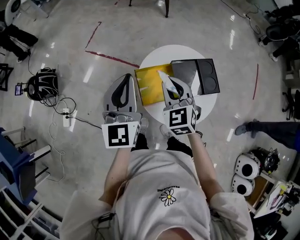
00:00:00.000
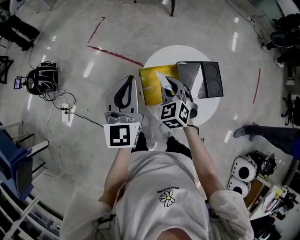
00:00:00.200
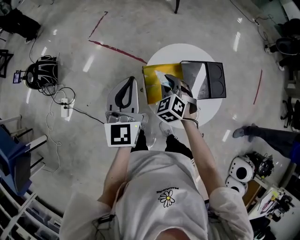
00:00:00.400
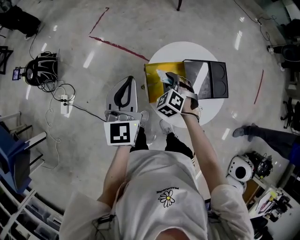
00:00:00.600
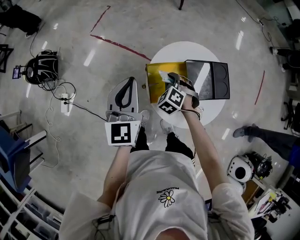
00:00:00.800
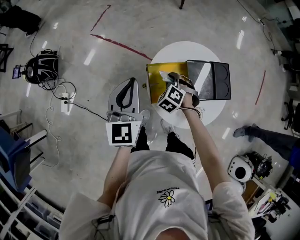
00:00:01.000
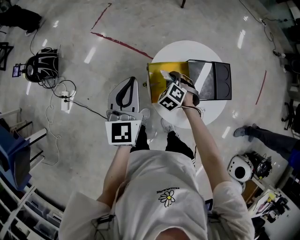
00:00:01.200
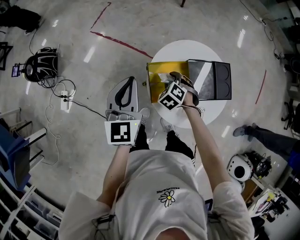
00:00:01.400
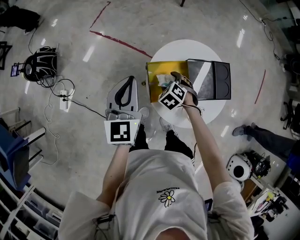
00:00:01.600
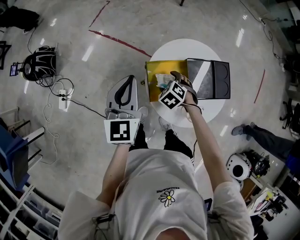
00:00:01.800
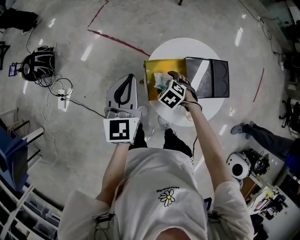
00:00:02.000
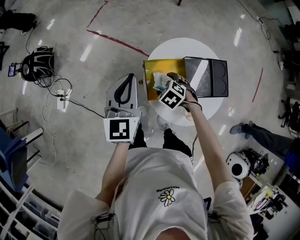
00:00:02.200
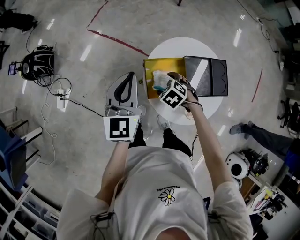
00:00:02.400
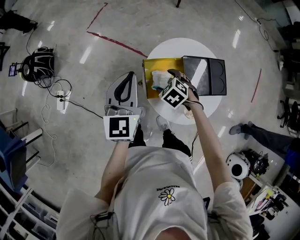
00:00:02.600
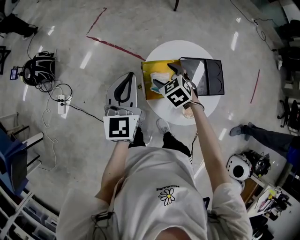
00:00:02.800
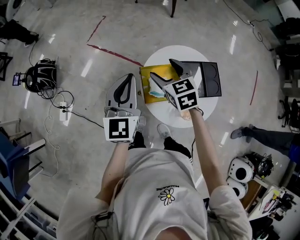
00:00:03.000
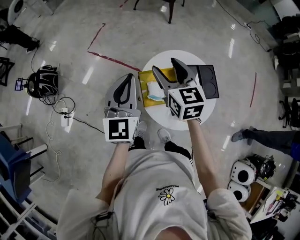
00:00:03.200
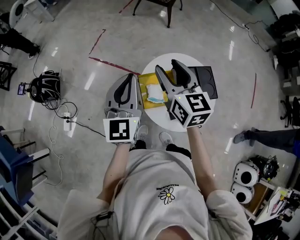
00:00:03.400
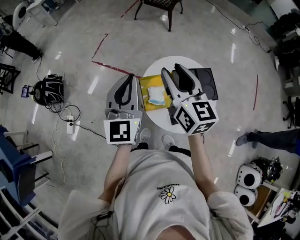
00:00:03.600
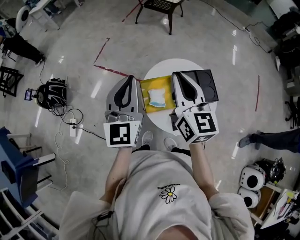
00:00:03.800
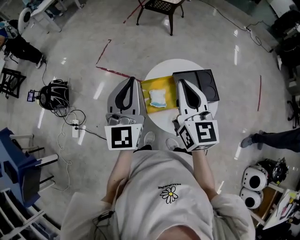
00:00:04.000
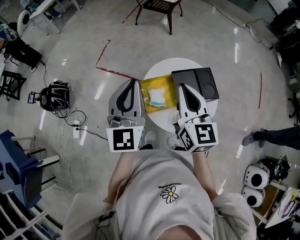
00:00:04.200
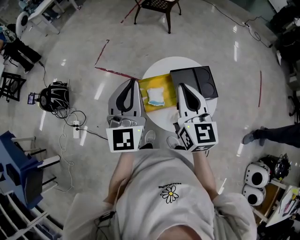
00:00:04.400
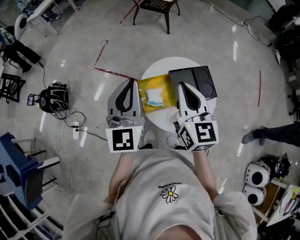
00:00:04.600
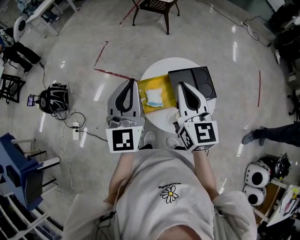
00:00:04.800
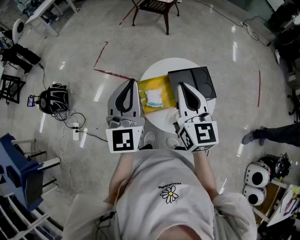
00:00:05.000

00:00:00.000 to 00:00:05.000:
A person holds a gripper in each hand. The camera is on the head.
00:00:00.000 to 00:00:01.600: The left gripper shifts roughly 10 cm downward and to the left; the right gripper moves downward, approximately 25 cm, angles its fingers downward, by roughly 40 degrees, and opens its fingers.
00:00:01.600 to 00:00:03.400: The right gripper goes some 35 cm upward, and points its fingers some 60 degrees further upward. The left gripper shifts approximately 10 cm upward.
00:00:03.400 to 00:00:05.000: The right gripper moves to the right and backward, approximately 10 cm, and closes up. The left gripper moves upward and to the right, about 5 cm.

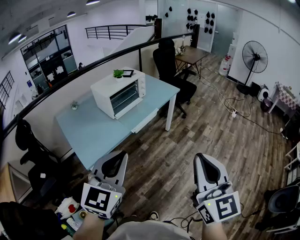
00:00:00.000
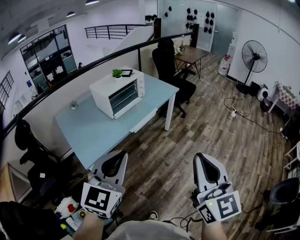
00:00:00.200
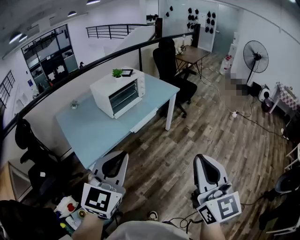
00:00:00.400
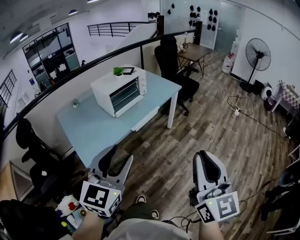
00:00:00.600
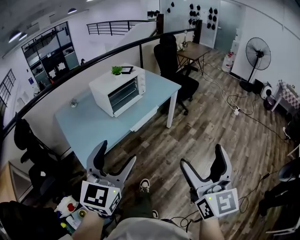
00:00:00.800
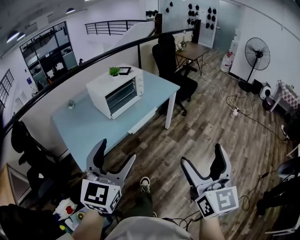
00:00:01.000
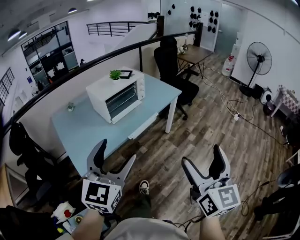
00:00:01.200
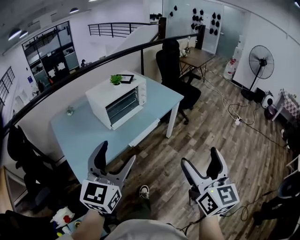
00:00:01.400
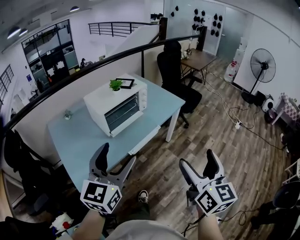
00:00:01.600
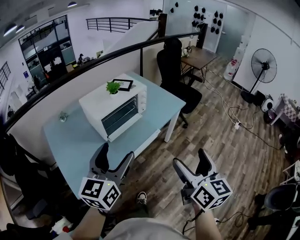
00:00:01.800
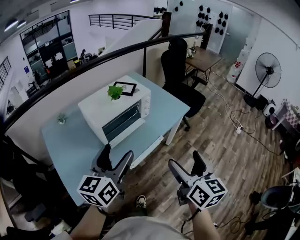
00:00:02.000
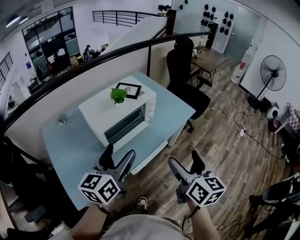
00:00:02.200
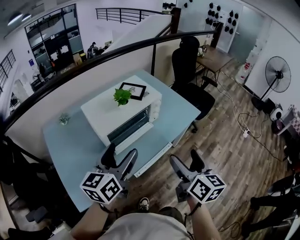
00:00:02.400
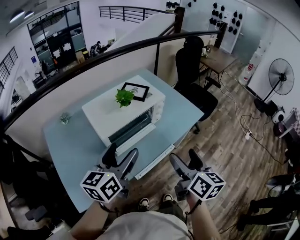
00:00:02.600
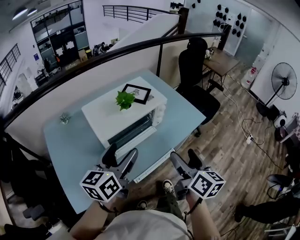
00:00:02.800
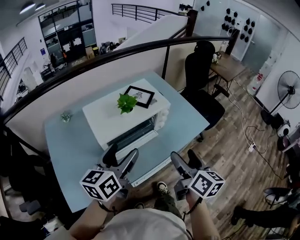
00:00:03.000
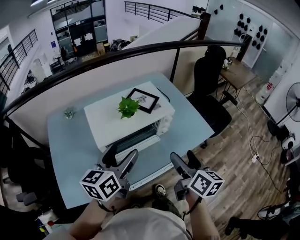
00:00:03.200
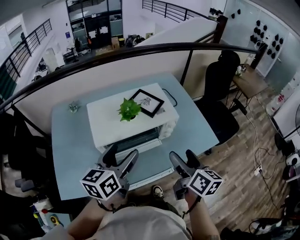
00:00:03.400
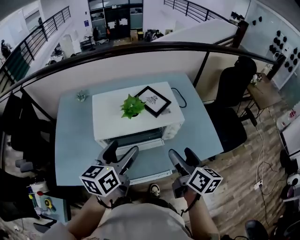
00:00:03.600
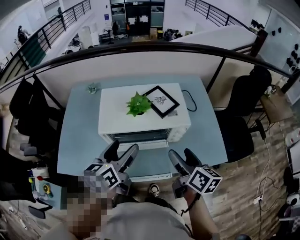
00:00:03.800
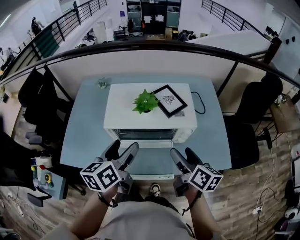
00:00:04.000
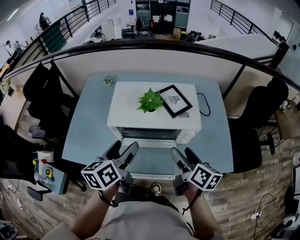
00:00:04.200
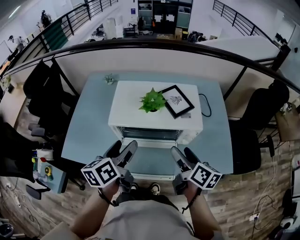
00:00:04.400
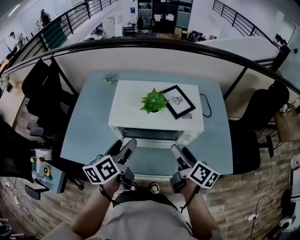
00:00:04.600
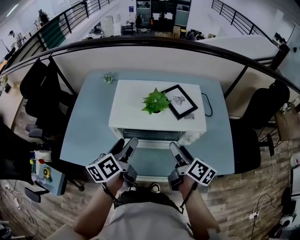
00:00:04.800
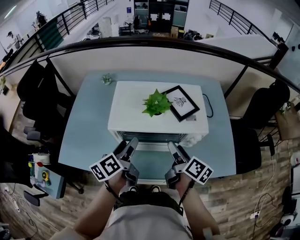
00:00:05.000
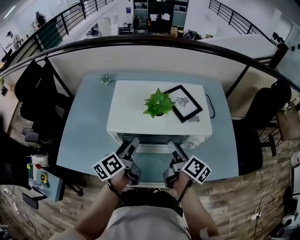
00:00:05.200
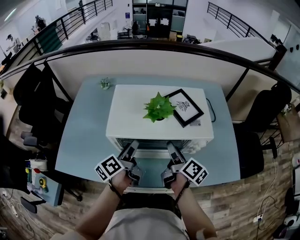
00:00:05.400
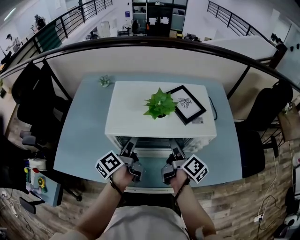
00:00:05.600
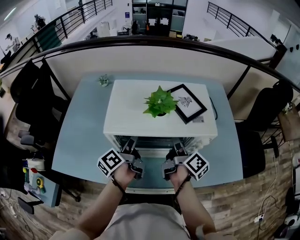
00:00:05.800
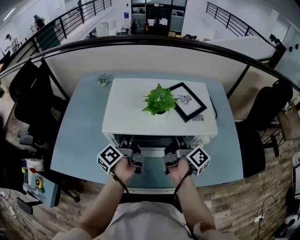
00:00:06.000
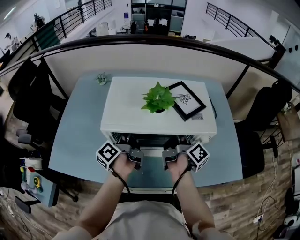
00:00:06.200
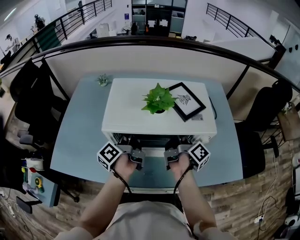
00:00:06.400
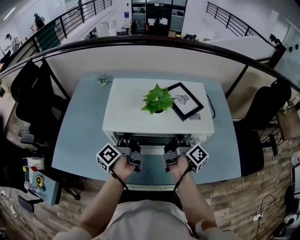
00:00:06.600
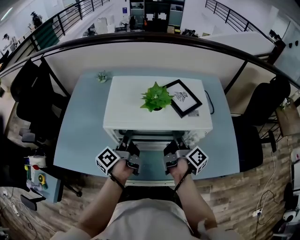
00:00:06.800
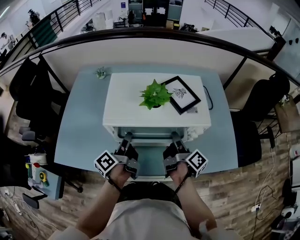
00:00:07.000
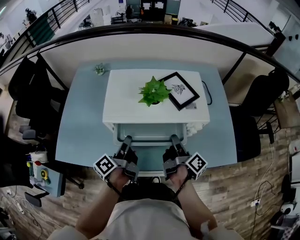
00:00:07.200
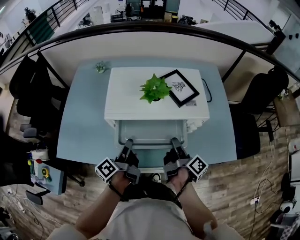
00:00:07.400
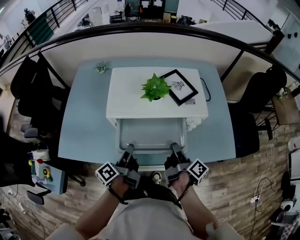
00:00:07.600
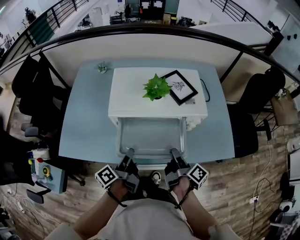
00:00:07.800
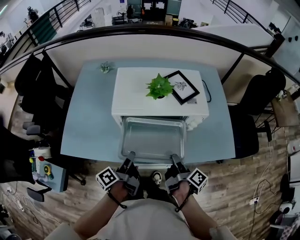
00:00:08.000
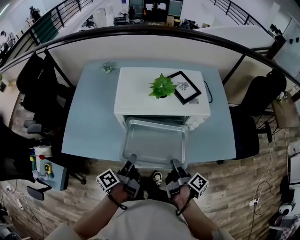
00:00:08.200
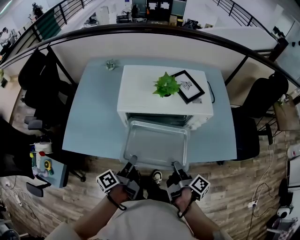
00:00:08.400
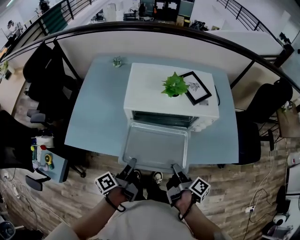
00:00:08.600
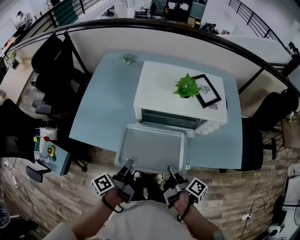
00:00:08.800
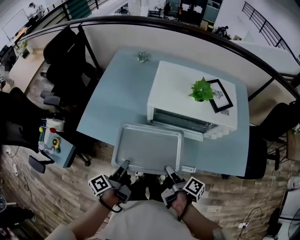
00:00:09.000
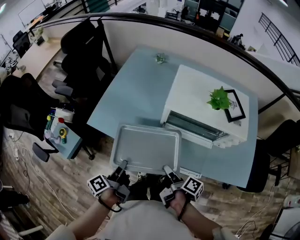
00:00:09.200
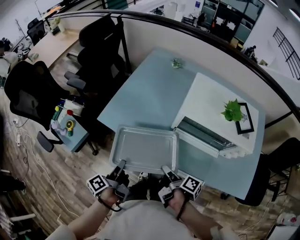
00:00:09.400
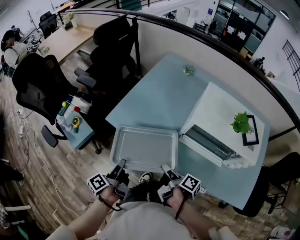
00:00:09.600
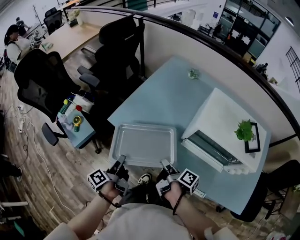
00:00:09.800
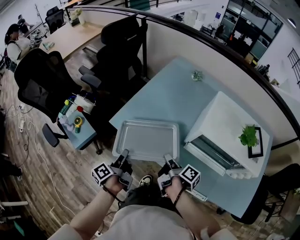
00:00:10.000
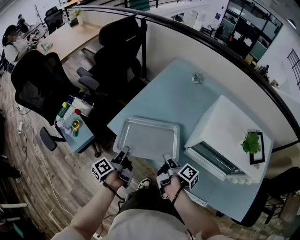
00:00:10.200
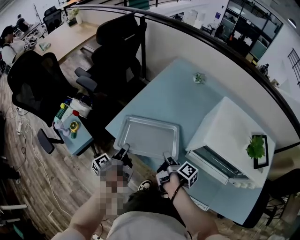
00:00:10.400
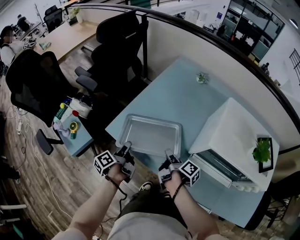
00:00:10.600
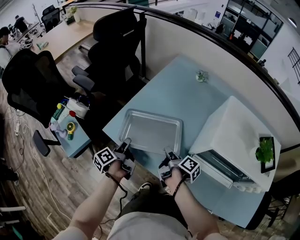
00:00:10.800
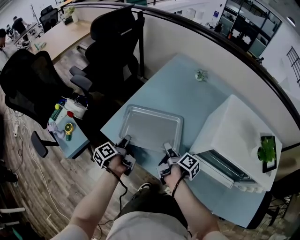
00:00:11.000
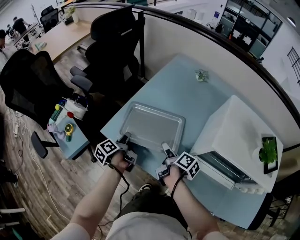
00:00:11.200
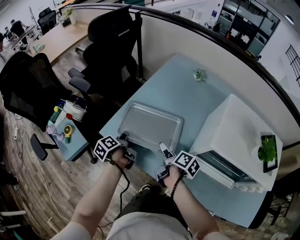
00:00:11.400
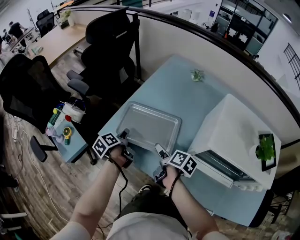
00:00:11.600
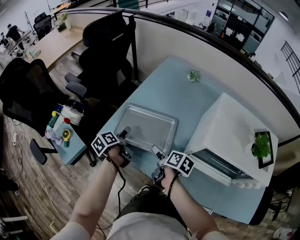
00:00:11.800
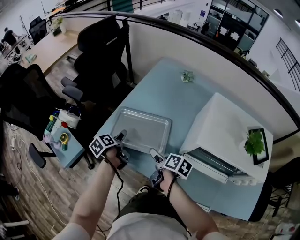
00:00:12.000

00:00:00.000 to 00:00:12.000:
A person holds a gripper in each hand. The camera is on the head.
00:00:00.000 to 00:00:01.600: The grippers both shift forward by about 25 cm. The right gripper opens up. The left gripper opens its fingers.
00:00:01.600 to 00:00:03.000: Both grippers move forward, about 35 cm. The right gripper rotates roughly 30 degrees; the left gripper swivels roughly 30 degrees.
00:00:03.000 to 00:00:04.400: The left gripper is displaced downward by approximately 5 cm, and rotates about 50 degrees; the right gripper shifts by about 20 cm, and turns by about 40 degrees.
00:00:04.400 to 00:00:06.000: The left gripper shifts about 20 cm downward and forward, and swivels roughly 40 degrees. Meanwhile the right gripper heads forward and downward, covering roughly 15 cm, and changes its angle by roughly 40 degrees.
00:00:06.000 to 00:00:07.600: The grippers both shift backward by approximately 15 cm. The left gripper closes its fingers.
00:00:07.600 to 00:00:09.000: The left gripper heads backward and to the left, covering some 20 cm. The right gripper is displaced to the left and backward by roughly 20 cm, and changes its angle by about 30 degrees.
00:00:09.000 to 00:00:10.400: The left gripper is displaced to the left, forward and downward by about 25 cm, and swivels roughly 30 degrees, while the right gripper goes about 25 cm forward and to the left.
00:00:10.400 to 00:00:12.000: The right gripper turns by roughly 30 degrees, and opens its fingers, while the left gripper moves forward and downward, roughly 10 cm, rotates roughly 30 degrees, and opens.

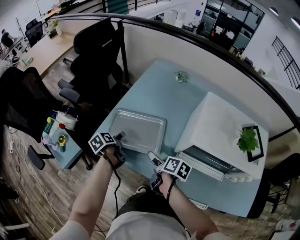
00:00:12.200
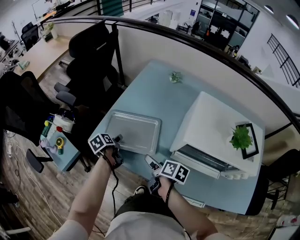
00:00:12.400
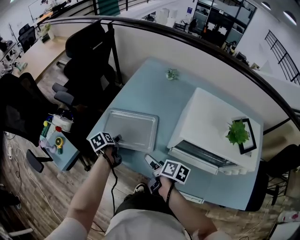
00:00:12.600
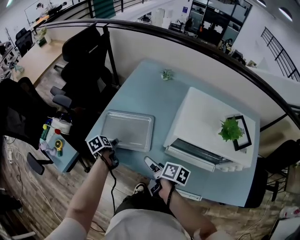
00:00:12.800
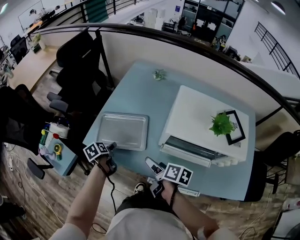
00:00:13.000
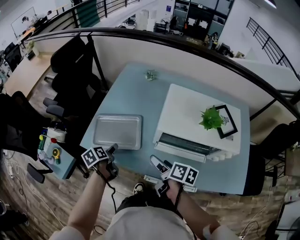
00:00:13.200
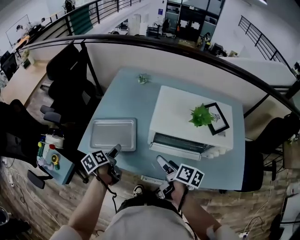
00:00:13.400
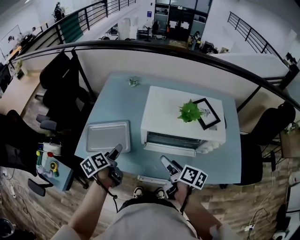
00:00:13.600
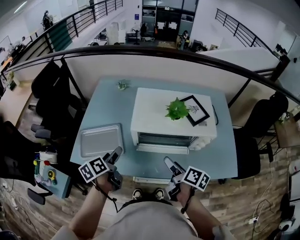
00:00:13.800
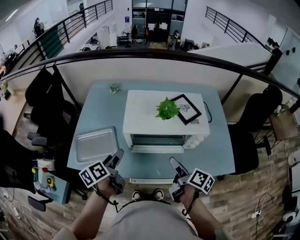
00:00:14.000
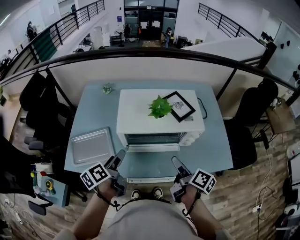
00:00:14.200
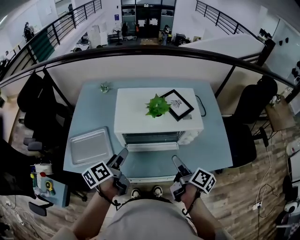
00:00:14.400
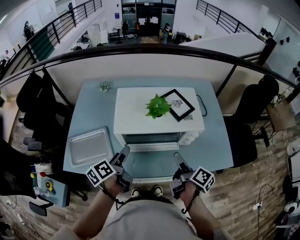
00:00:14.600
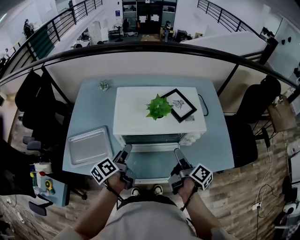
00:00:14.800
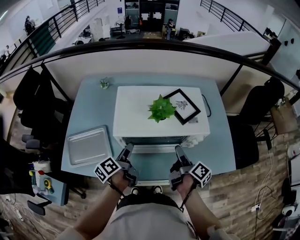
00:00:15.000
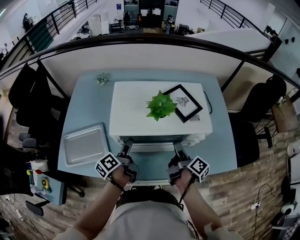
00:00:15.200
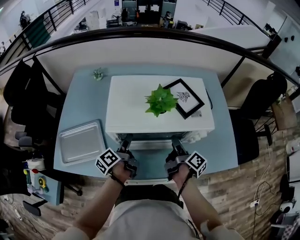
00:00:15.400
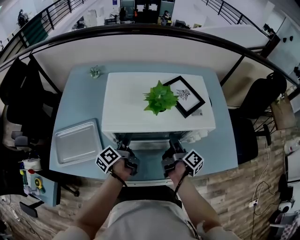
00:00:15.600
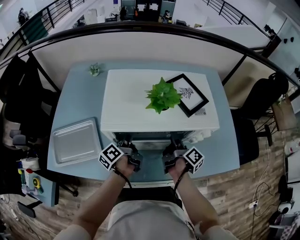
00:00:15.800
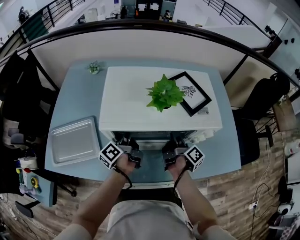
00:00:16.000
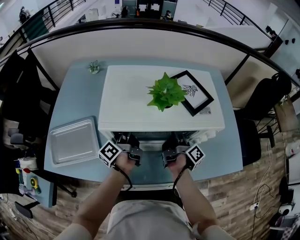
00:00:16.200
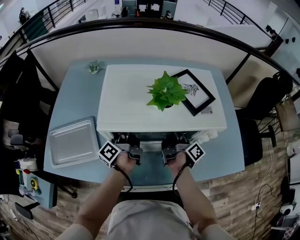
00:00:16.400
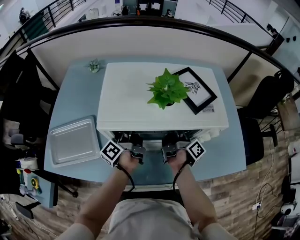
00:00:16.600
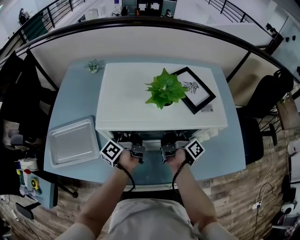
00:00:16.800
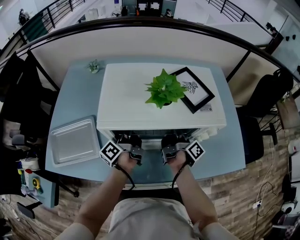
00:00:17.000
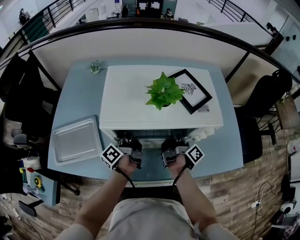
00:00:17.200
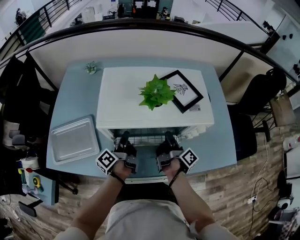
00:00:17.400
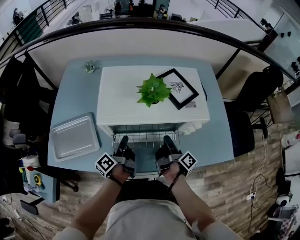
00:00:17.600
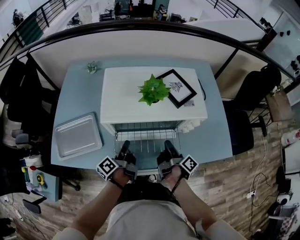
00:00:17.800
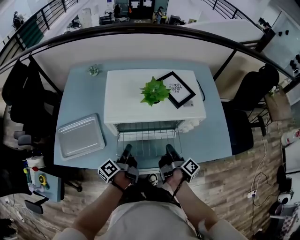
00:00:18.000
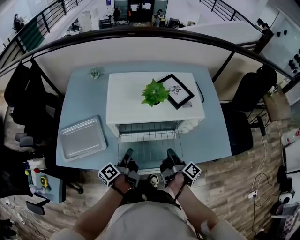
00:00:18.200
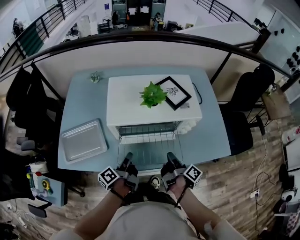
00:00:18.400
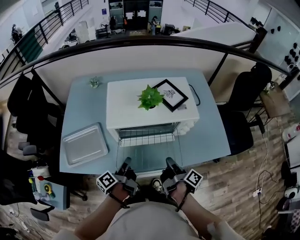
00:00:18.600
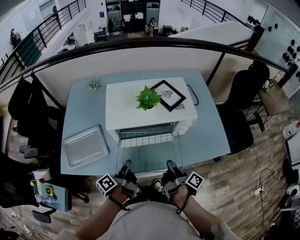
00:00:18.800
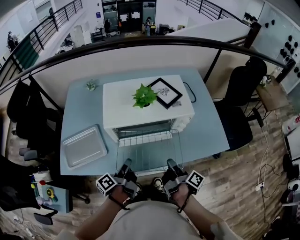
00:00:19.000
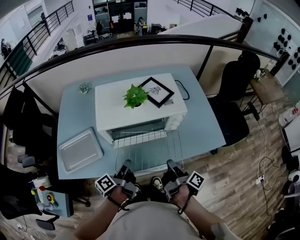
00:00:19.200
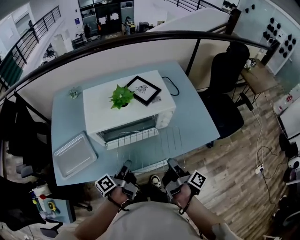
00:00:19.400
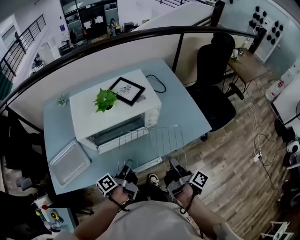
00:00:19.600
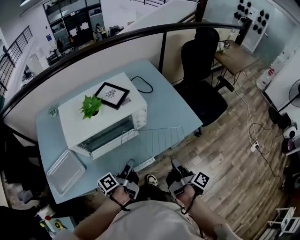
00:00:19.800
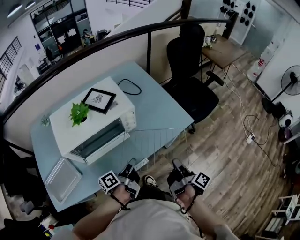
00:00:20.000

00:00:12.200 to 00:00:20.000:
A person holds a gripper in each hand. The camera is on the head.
00:00:12.200 to 00:00:13.800: The right gripper changes place by some 30 cm, and swivels approximately 30 degrees, while the left gripper ends up approximately 30 cm from where it was, and turns by about 40 degrees.
00:00:13.800 to 00:00:15.400: The right gripper shifts some 15 cm forward, to the right and downward, and rotates approximately 30 degrees, while the left gripper shifts about 20 cm to the right, forward and downward, and rotates some 20 degrees.
00:00:15.400 to 00:00:16.800: The right gripper travels forward and downward by roughly 10 cm, and closes, while the left gripper is displaced forward by about 10 cm, rotates some 20 degrees, and closes its fingers.
00:00:16.800 to 00:00:18.400: Both grippers travel together backward, about 20 cm.
00:00:18.400 to 00:00:20.000: The right gripper shifts by about 25 cm, and swivels roughly 30 degrees. Meanwhile the left gripper changes place by roughly 20 cm, and rotates about 40 degrees.
